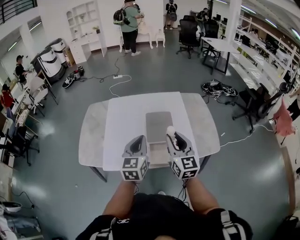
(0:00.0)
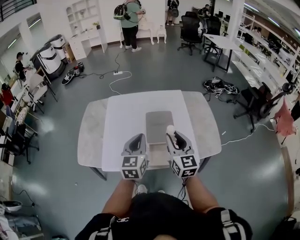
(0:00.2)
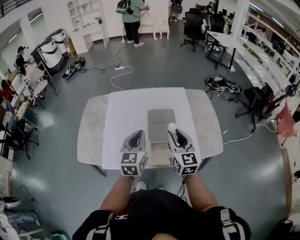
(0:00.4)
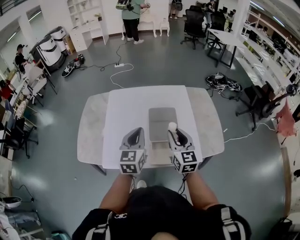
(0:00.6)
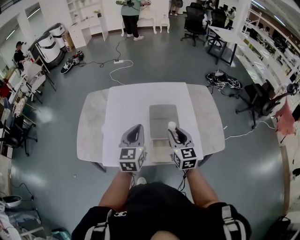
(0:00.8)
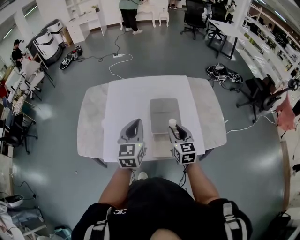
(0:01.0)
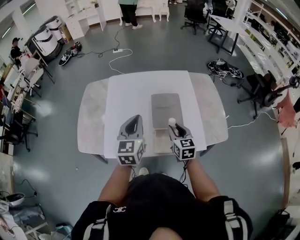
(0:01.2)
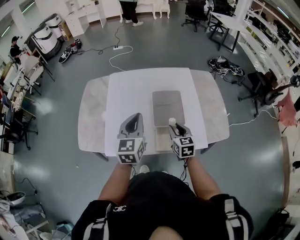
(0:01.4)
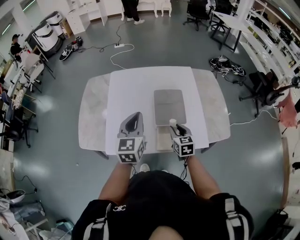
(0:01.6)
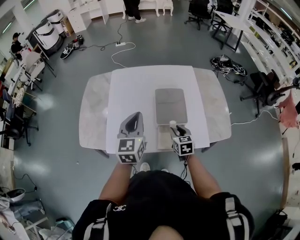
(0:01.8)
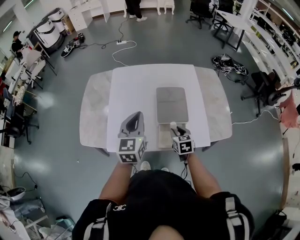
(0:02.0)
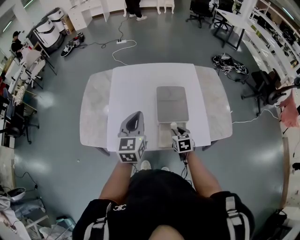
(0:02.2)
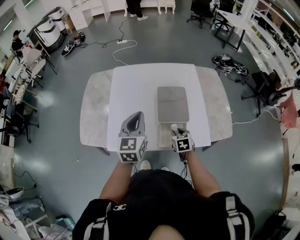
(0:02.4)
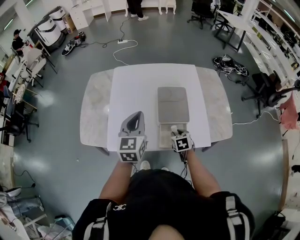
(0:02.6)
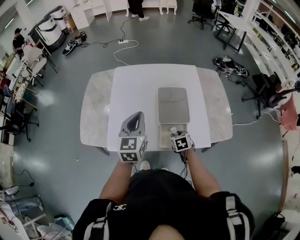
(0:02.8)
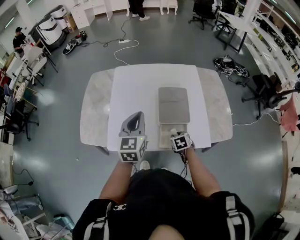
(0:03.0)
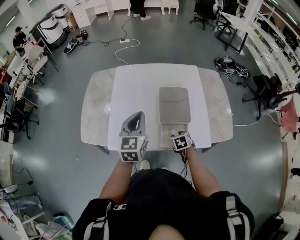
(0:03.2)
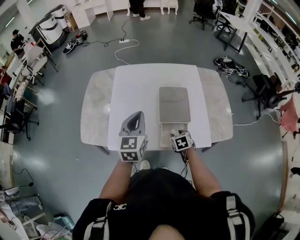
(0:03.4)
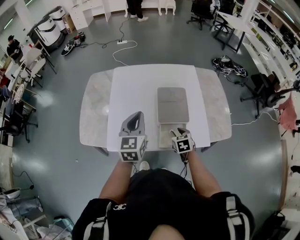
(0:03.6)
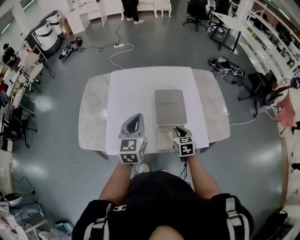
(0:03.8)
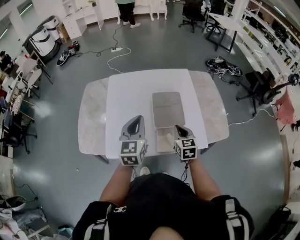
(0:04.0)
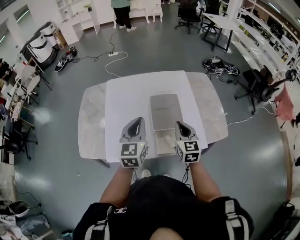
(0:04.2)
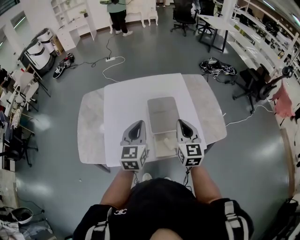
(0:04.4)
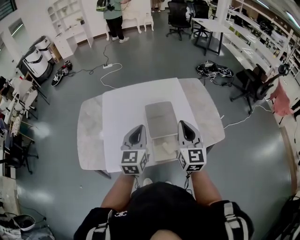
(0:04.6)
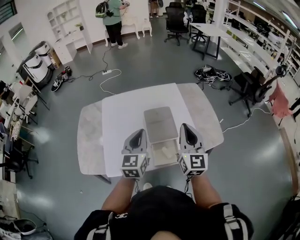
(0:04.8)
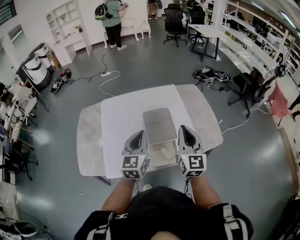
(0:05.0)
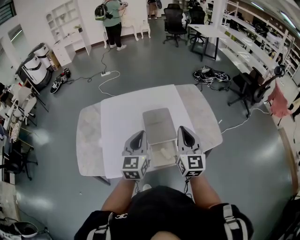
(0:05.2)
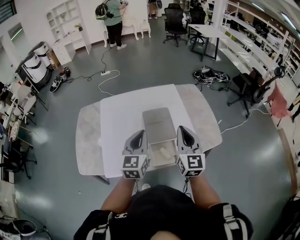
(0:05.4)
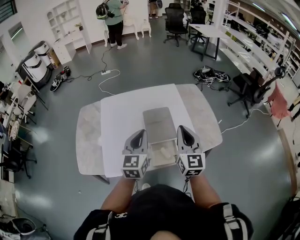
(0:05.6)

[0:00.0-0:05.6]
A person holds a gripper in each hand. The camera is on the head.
0:00.0 to 0:01.4: The left gripper moves forward and to the left, roughly 10 cm, while the right gripper heads downward and forward, covering some 20 cm, and rotates approximately 30 degrees.
0:01.4 to 0:02.8: The right gripper goes approximately 15 cm downward, and tips its fingers downward by approximately 30 degrees.
0:02.8 to 0:04.2: The right gripper goes roughly 25 cm upward, tilts its fingers some 40 degrees upward, and closes its fingers.
0:04.2 to 0:05.6: The left gripper changes place by some 5 cm. Meanwhile the right gripper shifts approximately 10 cm upward.

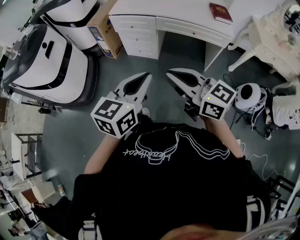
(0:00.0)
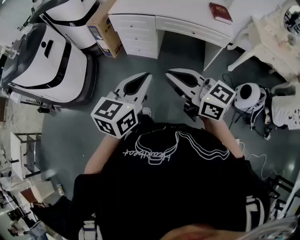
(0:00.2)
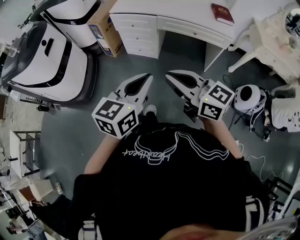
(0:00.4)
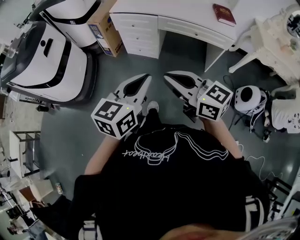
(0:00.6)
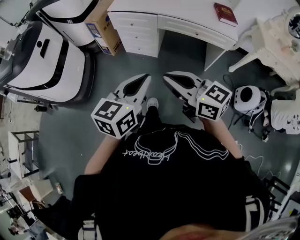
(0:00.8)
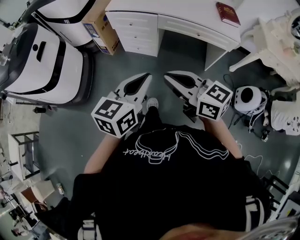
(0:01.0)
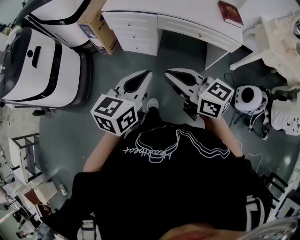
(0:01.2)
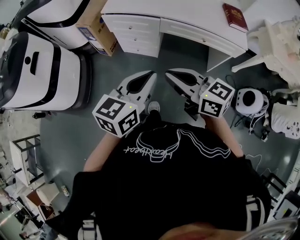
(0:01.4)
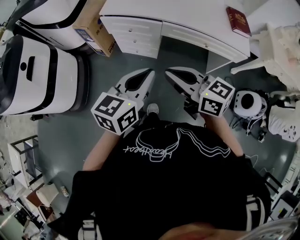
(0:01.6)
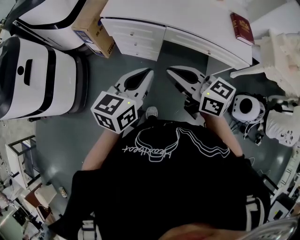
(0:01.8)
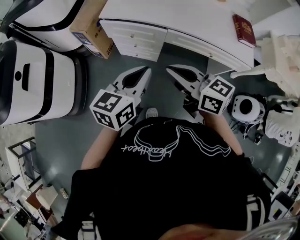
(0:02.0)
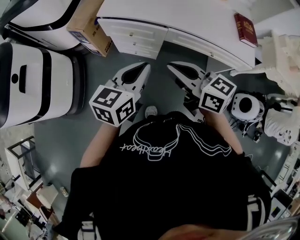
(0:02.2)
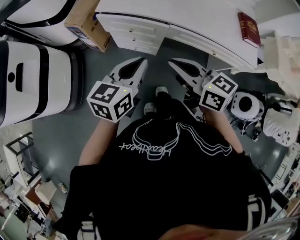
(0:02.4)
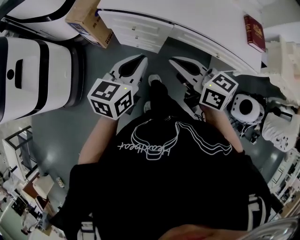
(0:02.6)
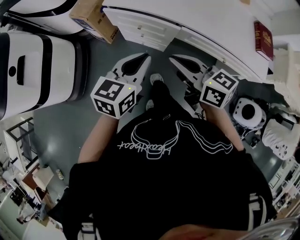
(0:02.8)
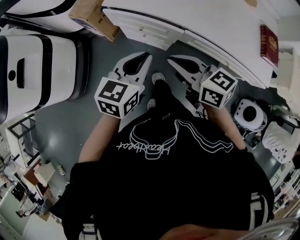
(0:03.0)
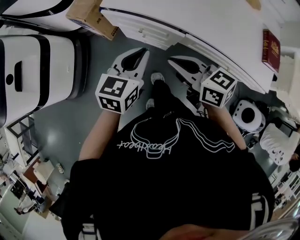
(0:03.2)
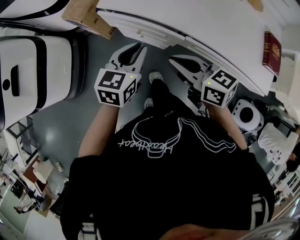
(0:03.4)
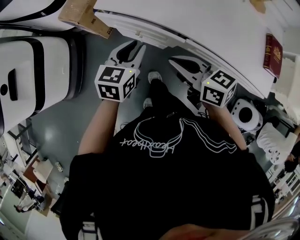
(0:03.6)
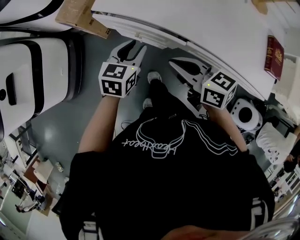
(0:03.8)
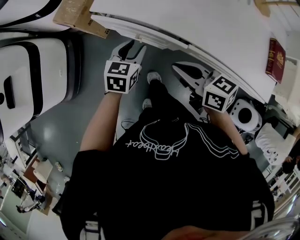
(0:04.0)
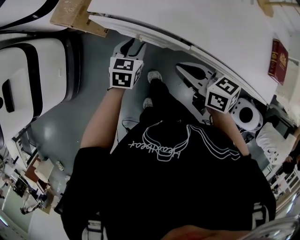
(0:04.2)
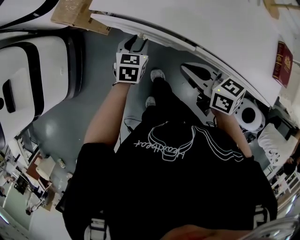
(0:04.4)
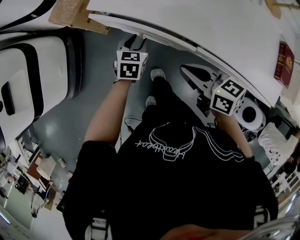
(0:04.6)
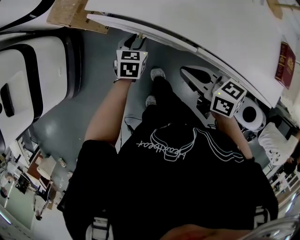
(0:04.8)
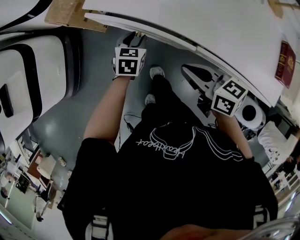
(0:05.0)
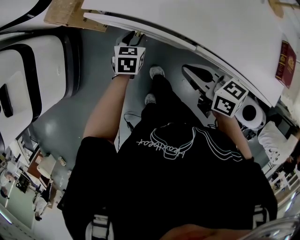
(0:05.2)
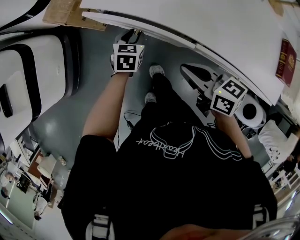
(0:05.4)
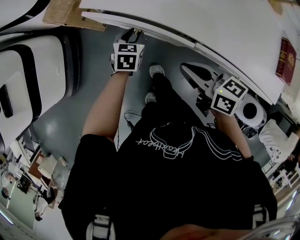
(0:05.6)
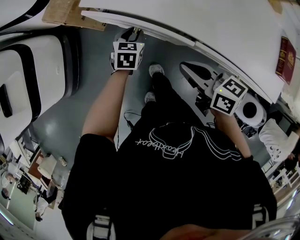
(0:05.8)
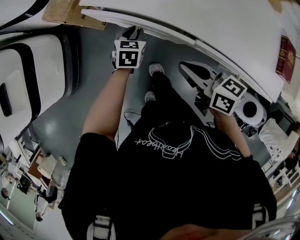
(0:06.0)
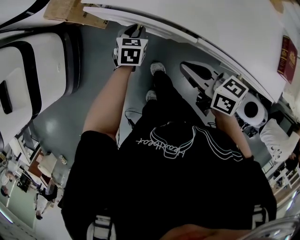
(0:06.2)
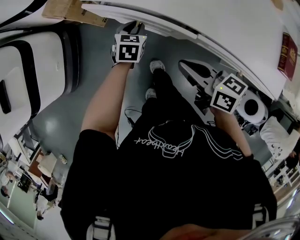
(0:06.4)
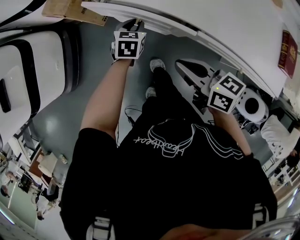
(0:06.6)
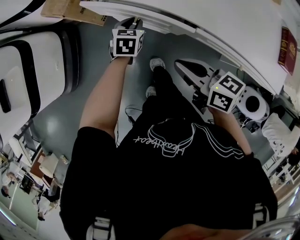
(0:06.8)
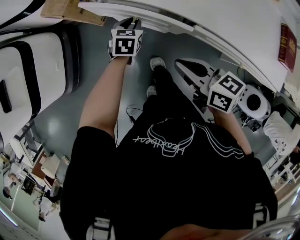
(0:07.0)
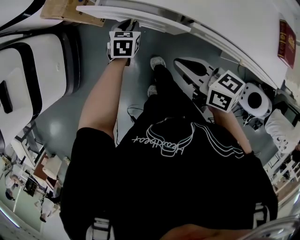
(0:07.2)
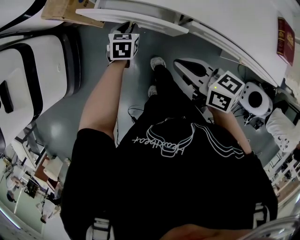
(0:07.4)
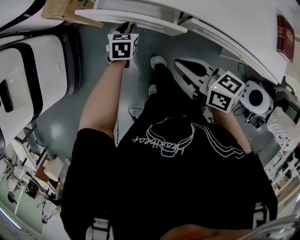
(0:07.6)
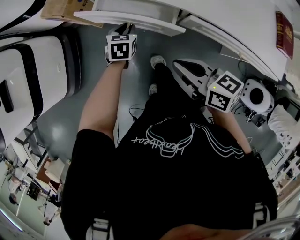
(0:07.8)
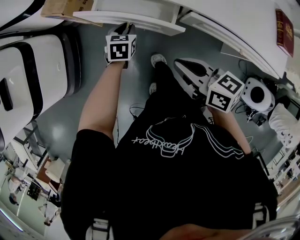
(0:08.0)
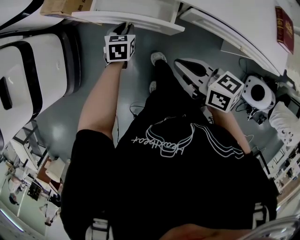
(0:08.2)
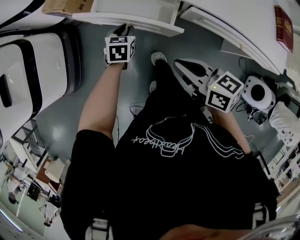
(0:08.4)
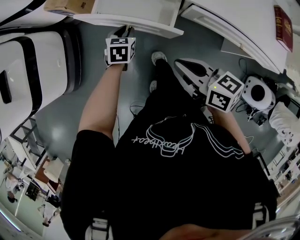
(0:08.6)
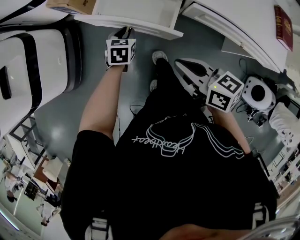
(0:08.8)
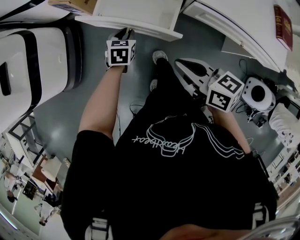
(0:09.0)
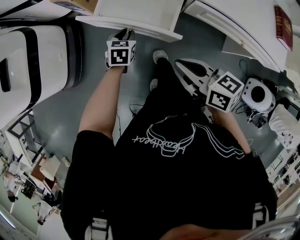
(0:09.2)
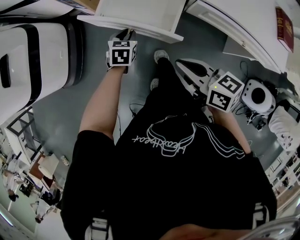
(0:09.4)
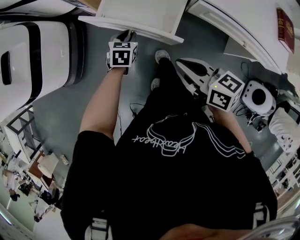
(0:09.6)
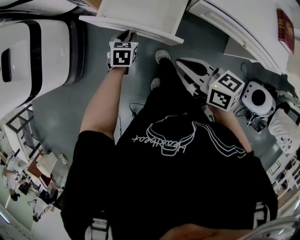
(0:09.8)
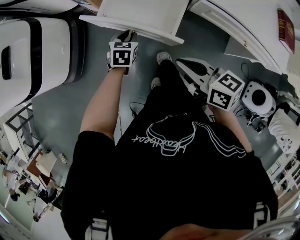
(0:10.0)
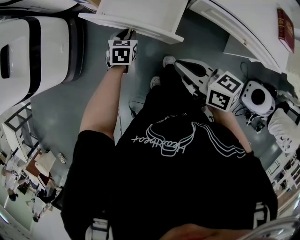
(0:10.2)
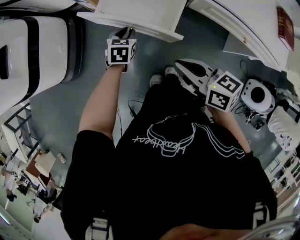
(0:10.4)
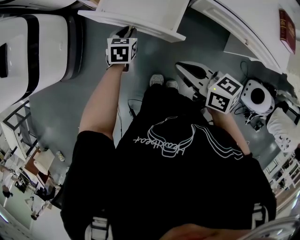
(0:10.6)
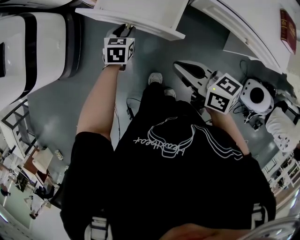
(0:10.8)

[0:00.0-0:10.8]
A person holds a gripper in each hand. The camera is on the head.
0:00.0 to 0:01.6: Both grippers move forward, about 25 cm.
0:01.6 to 0:03.0: The two grippers go some 25 cm forward and downward.
0:03.0 to 0:04.6: The right gripper is displaced downward, forward and to the right by approximately 15 cm. The left gripper is displaced downward and forward by approximately 30 cm, turns by approximately 20 degrees, and opens its fingers.
0:04.6 to 0:06.2: The grippers make only small movements.
0:06.2 to 0:07.8: The left gripper moves about 5 cm. The right gripper shifts about 5 cm backward.
0:07.8 to 0:09.2: The right gripper shifts roughly 5 cm backward; the left gripper travels backward and to the left by roughly 10 cm.
0:09.2 to 0:10.8: There are only small adjustments of the grippers.

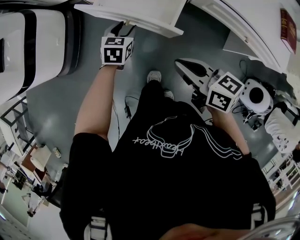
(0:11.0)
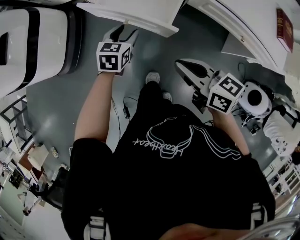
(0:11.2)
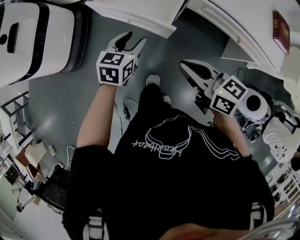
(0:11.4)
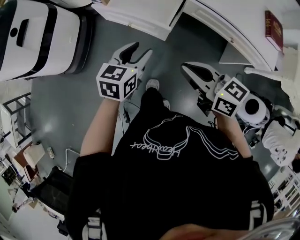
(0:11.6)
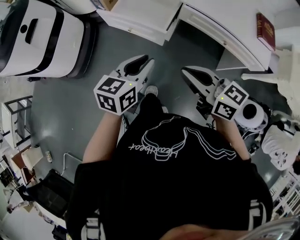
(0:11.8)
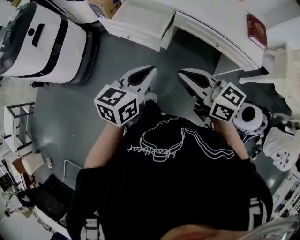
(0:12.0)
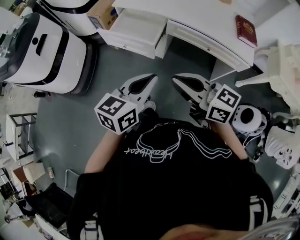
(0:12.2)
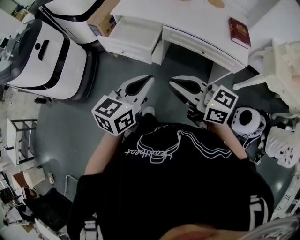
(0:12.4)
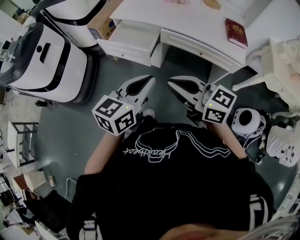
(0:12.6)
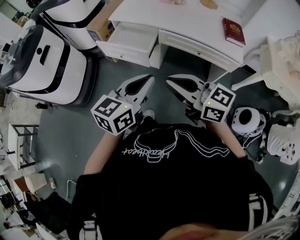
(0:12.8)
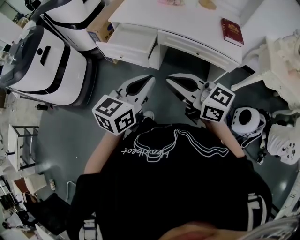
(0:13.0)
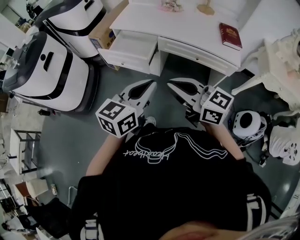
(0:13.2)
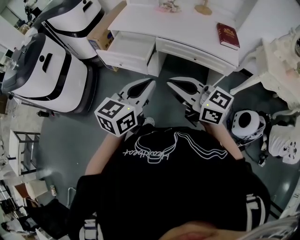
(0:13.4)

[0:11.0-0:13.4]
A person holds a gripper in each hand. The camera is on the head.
0:11.0 to 0:12.2: The left gripper moves upward and backward, roughly 50 cm, tips its fingers upward by about 30 degrees, and closes; the right gripper heads upward and backward, covering about 30 cm, and swivels roughly 30 degrees.
0:12.2 to 0:13.4: Both grippers move upward, about 5 cm.

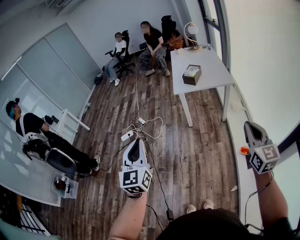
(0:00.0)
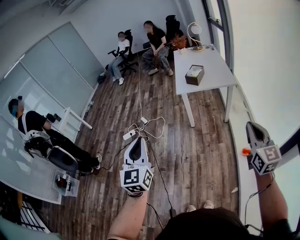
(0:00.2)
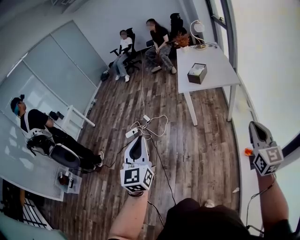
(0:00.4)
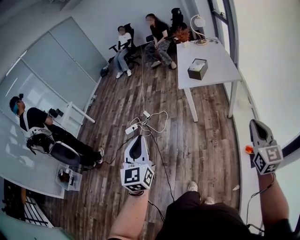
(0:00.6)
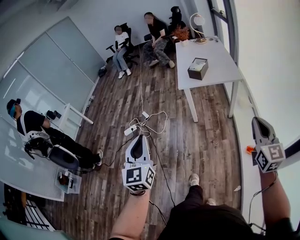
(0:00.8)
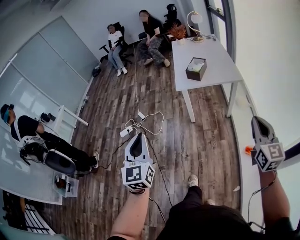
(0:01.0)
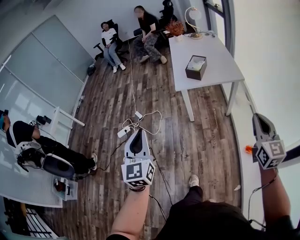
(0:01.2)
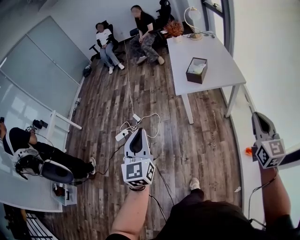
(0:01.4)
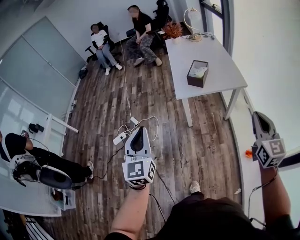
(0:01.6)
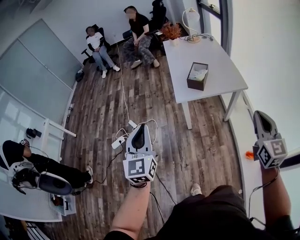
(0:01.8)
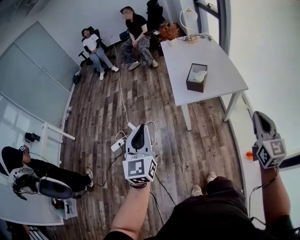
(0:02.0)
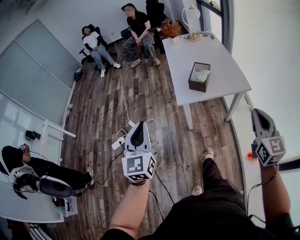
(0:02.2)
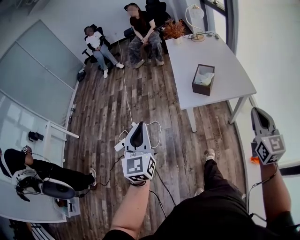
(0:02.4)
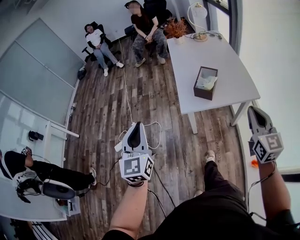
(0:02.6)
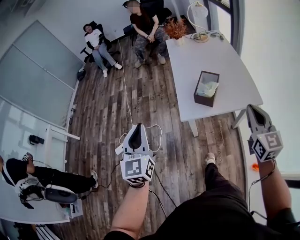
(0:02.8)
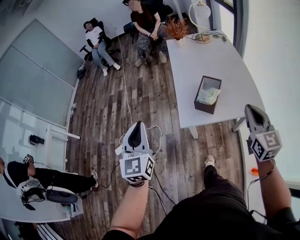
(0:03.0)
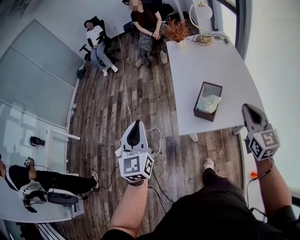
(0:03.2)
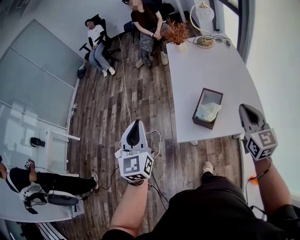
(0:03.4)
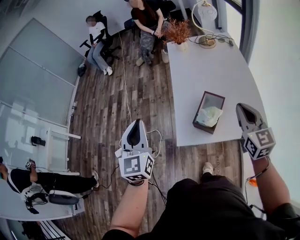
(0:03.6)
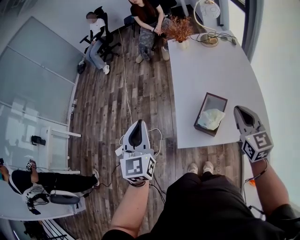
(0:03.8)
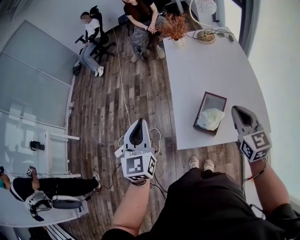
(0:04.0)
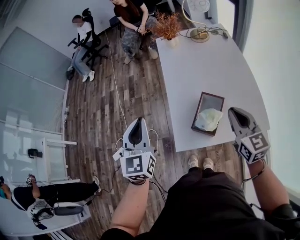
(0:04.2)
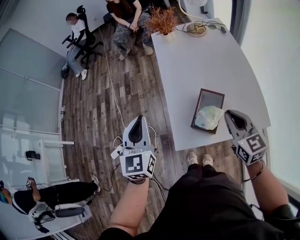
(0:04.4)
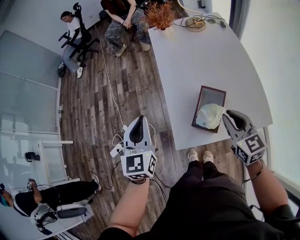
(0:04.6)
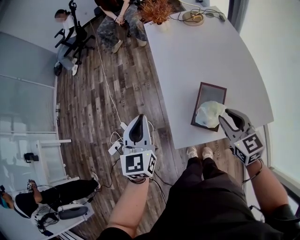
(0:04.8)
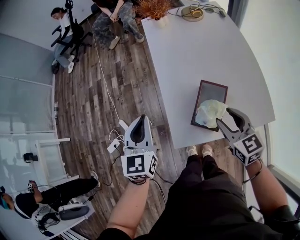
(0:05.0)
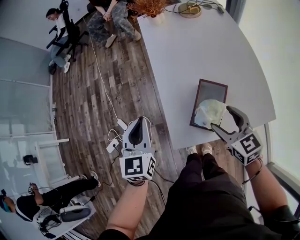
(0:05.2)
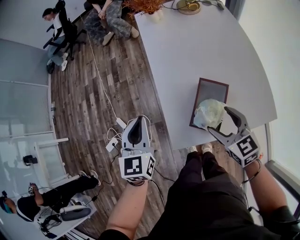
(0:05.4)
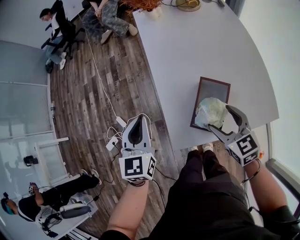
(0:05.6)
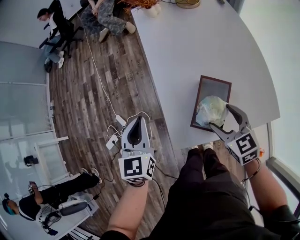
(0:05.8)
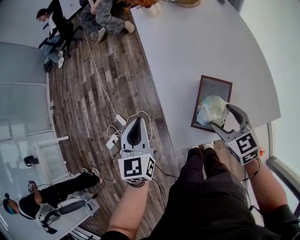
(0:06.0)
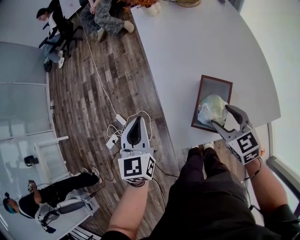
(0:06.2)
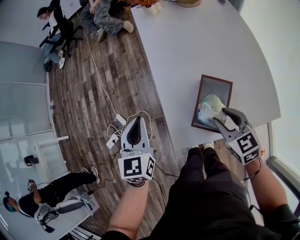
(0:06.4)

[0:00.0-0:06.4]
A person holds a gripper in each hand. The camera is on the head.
0:00.0 to 0:01.6: Both grippers travel together forward, approximately 30 cm.
0:01.6 to 0:03.2: Both grippers move forward, about 40 cm.
0:03.2 to 0:04.8: The left gripper is displaced forward and downward by roughly 20 cm, while the right gripper goes approximately 20 cm downward, forward and to the left.
0:04.8 to 0:06.4: The grippers both shift downward by roughly 10 cm. The right gripper opens, then closes once more.
